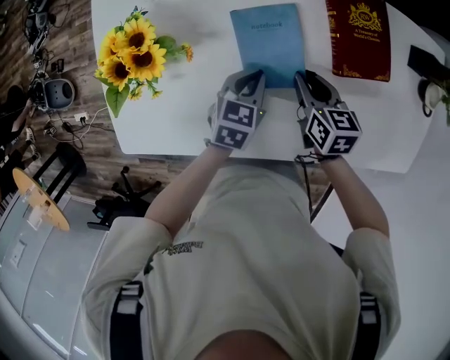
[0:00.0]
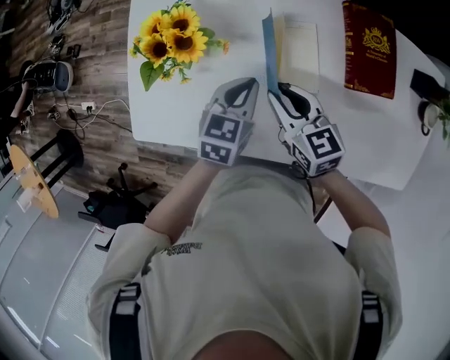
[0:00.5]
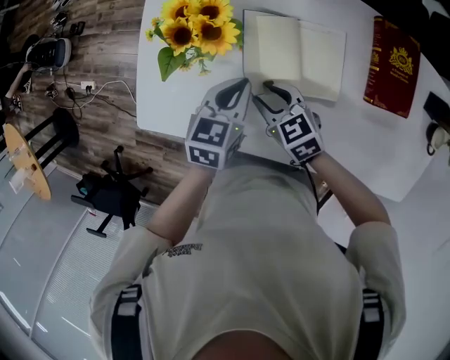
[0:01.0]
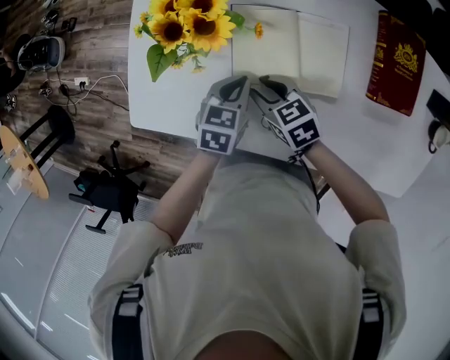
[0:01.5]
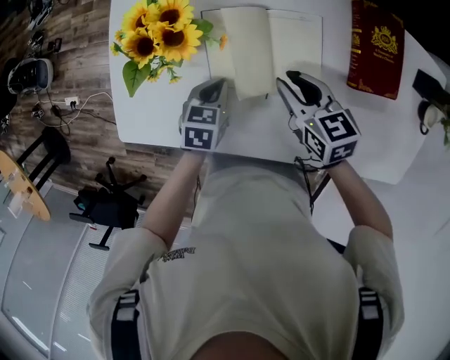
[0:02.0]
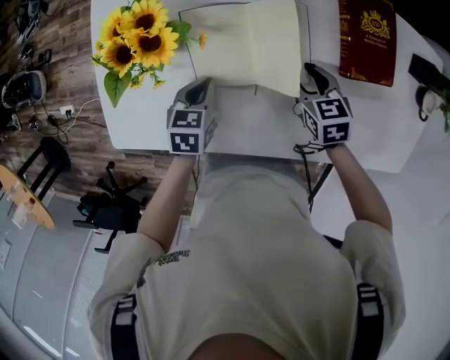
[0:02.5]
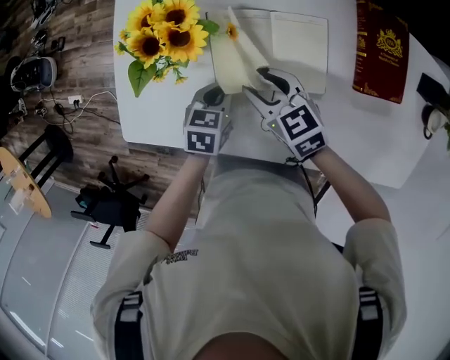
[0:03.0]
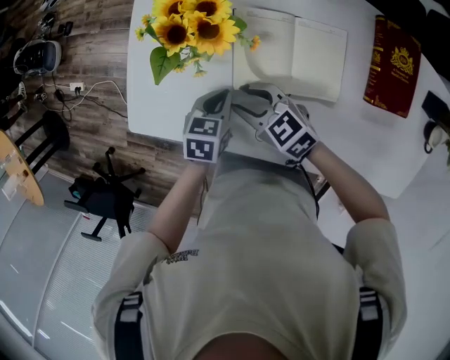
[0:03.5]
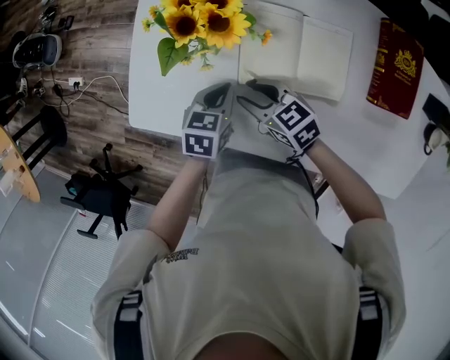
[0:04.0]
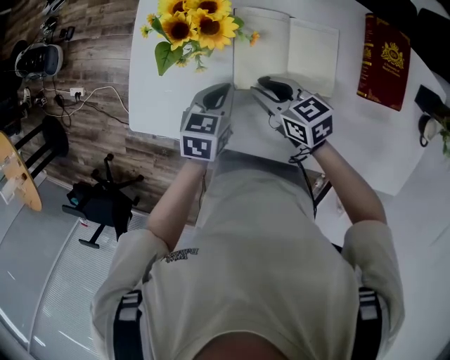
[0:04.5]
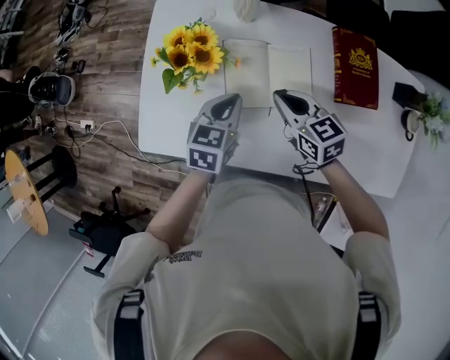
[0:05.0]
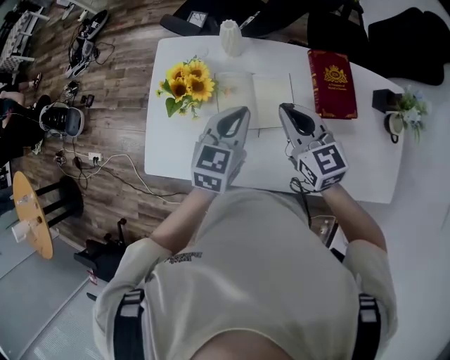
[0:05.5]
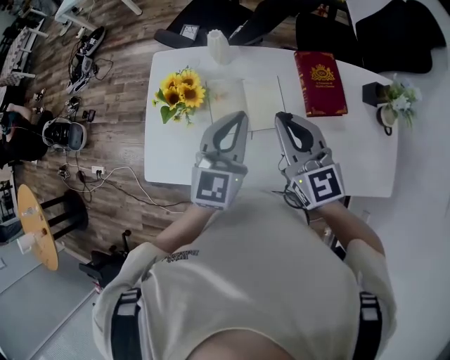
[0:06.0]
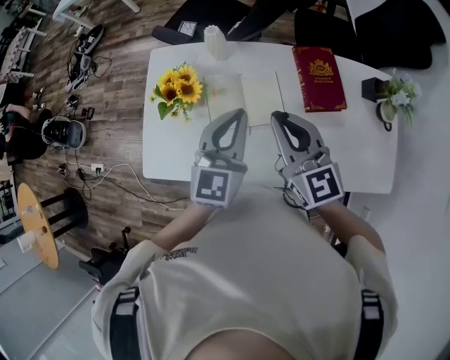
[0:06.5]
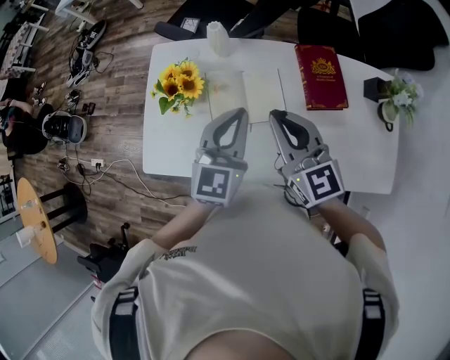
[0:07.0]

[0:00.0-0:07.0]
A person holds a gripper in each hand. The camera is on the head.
0:00.0 to 0:02.0: The left gripper moves some 10 cm upward and comes back, while the right gripper goes up and down, some 10 cm each way, reversing 2 times, and rotates some 20 degrees.
0:02.0 to 0:03.5: The left gripper moves approximately 5 cm. The right gripper shifts approximately 15 cm to the left, and changes its angle by some 30 degrees.
0:03.5 to 0:05.0: The right gripper is displaced to the right and upward by approximately 15 cm, turns by some 30 degrees, and closes up, while the left gripper travels upward and to the right by some 15 cm, and turns by some 20 degrees.
0:05.0 to 0:07.0: The left gripper heads upward and to the right, covering about 20 cm, and changes its angle by roughly 30 degrees, while the right gripper moves upward, roughly 20 cm, and swivels some 30 degrees.

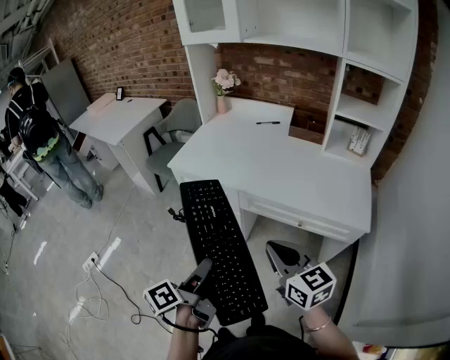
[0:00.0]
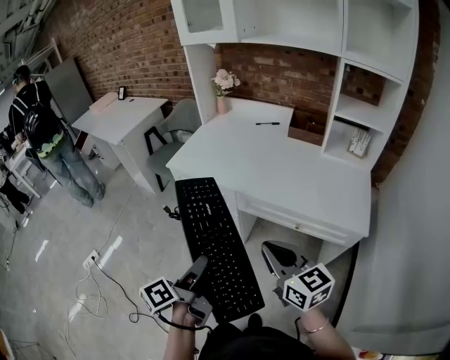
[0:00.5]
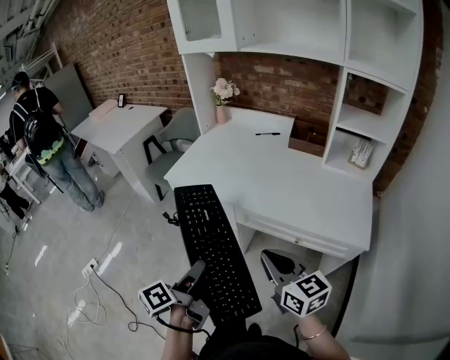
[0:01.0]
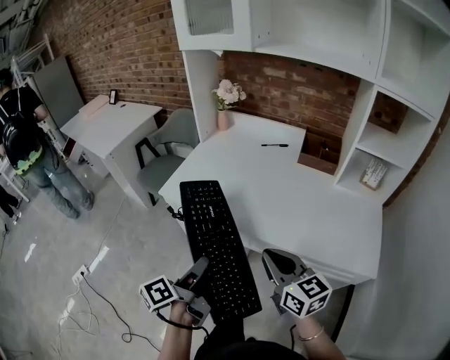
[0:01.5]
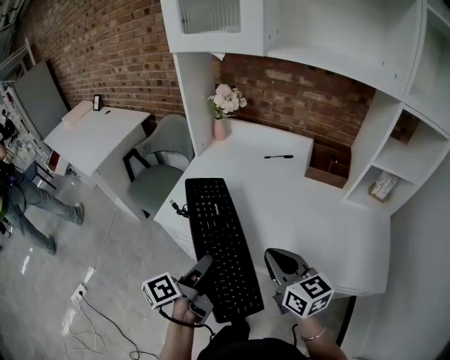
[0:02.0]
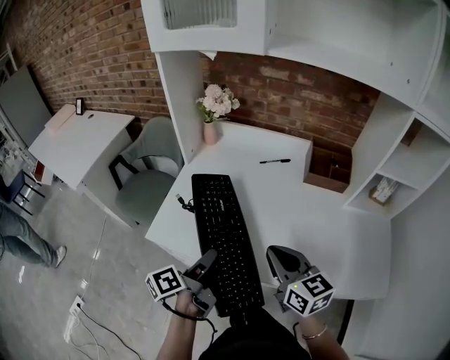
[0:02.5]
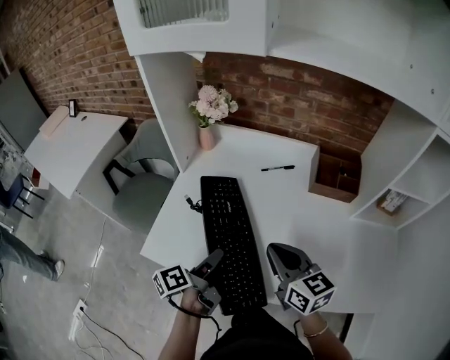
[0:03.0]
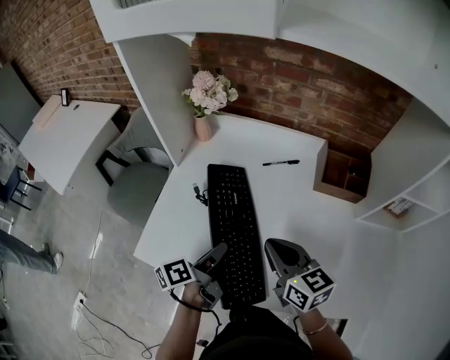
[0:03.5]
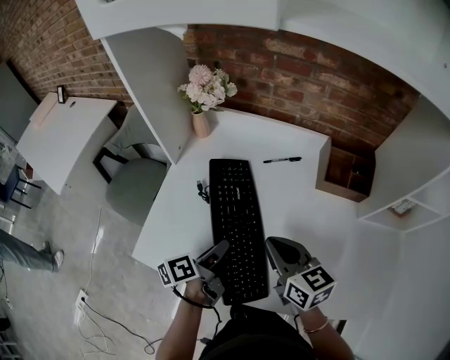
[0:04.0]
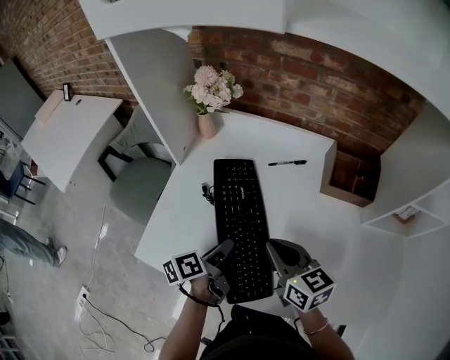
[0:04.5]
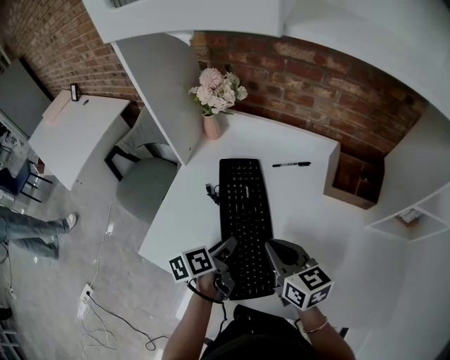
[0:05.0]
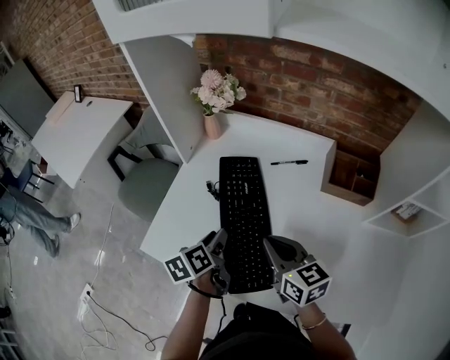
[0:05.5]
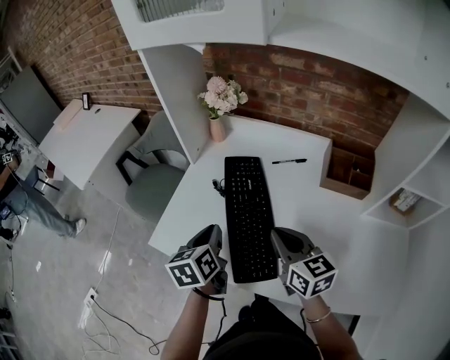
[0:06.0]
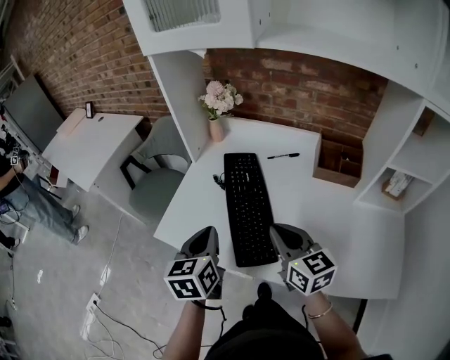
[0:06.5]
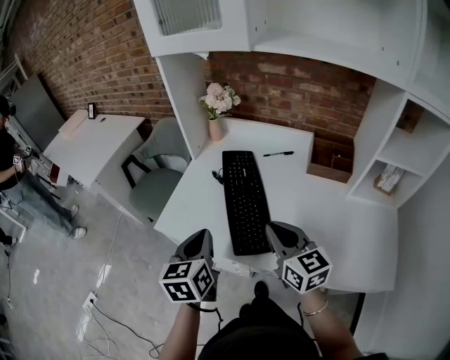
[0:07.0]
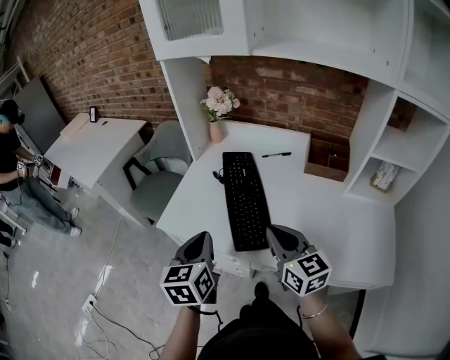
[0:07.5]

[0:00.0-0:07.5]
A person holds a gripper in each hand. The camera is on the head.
0:00.0 to 0:02.0: The grippers both shift forward by approximately 35 cm.
0:02.0 to 0:04.0: The left gripper heads forward and downward, covering about 25 cm. Meanwhile the right gripper heads forward, covering some 25 cm.
0:04.0 to 0:05.5: The left gripper swivels some 30 degrees.
0:05.5 to 0:07.5: Both grippers travel together backward and upward, roughly 20 cm. The left gripper turns by some 40 degrees, and closes its fingers.

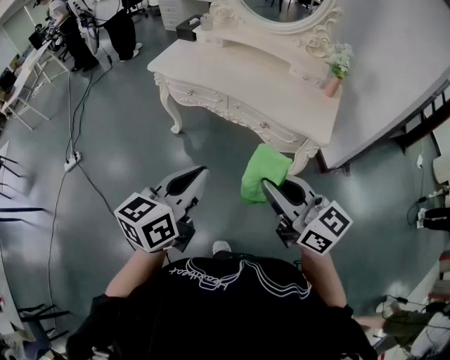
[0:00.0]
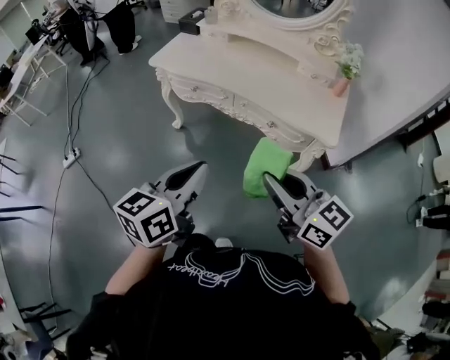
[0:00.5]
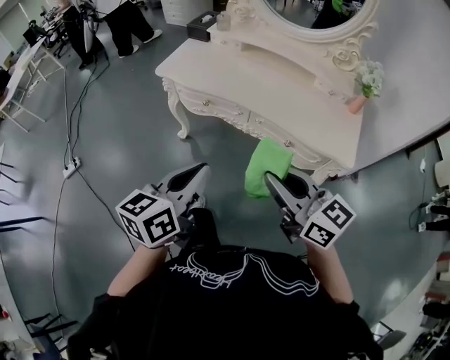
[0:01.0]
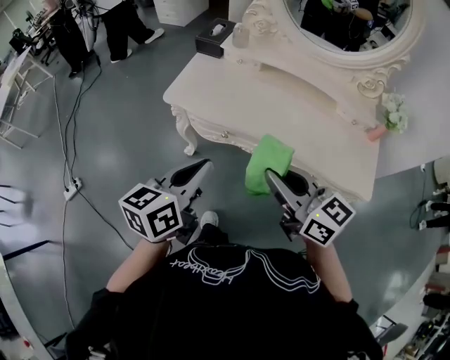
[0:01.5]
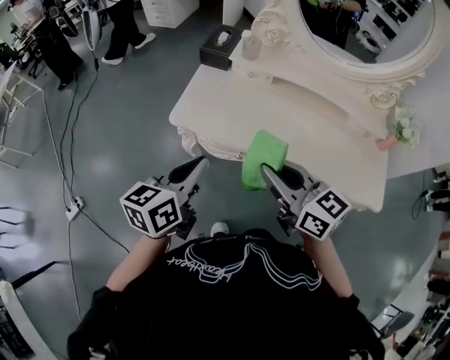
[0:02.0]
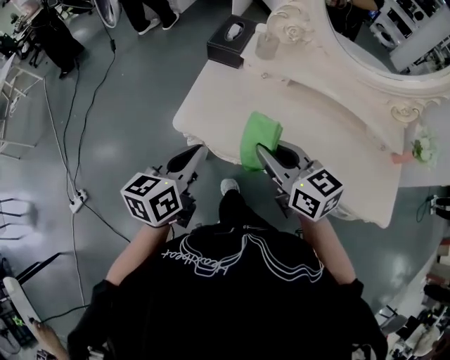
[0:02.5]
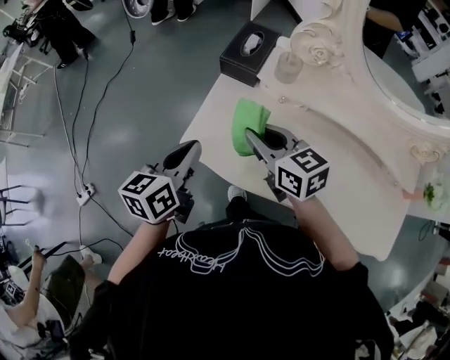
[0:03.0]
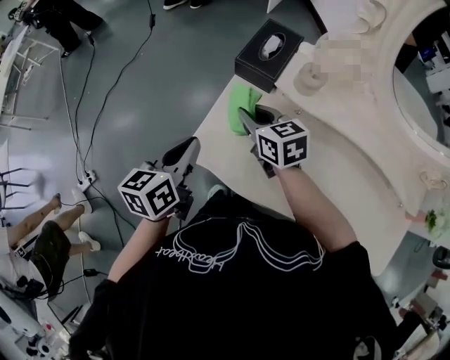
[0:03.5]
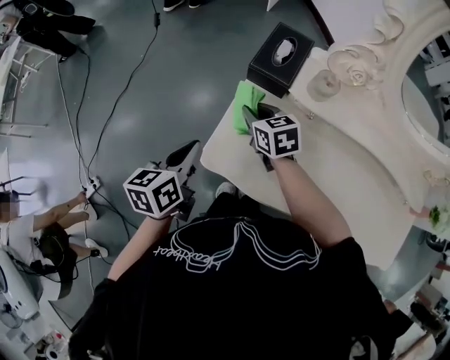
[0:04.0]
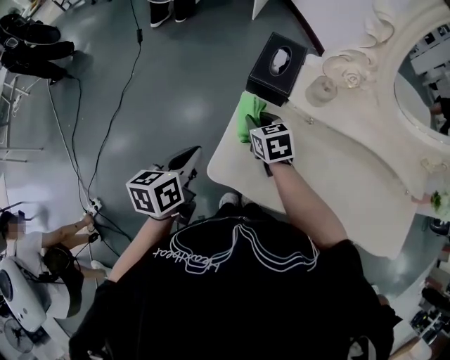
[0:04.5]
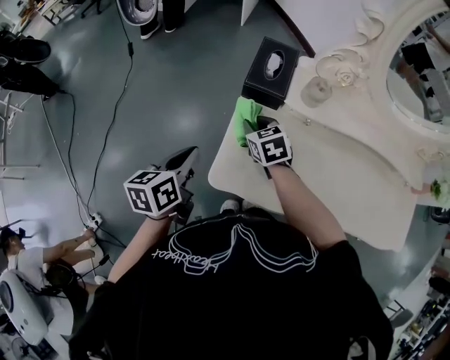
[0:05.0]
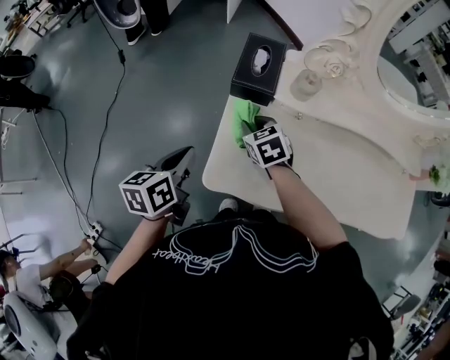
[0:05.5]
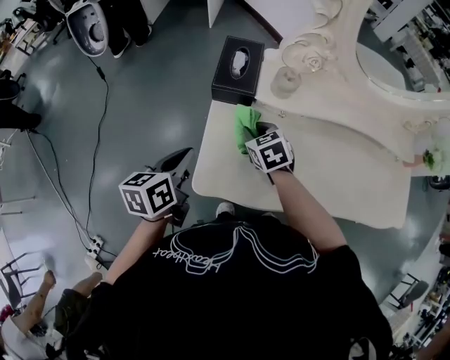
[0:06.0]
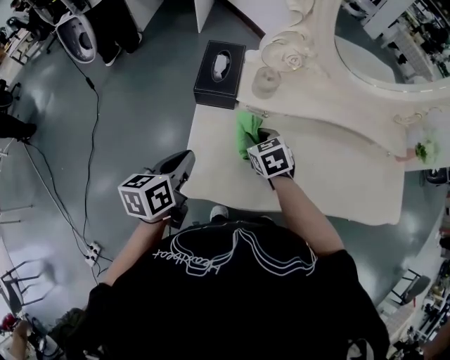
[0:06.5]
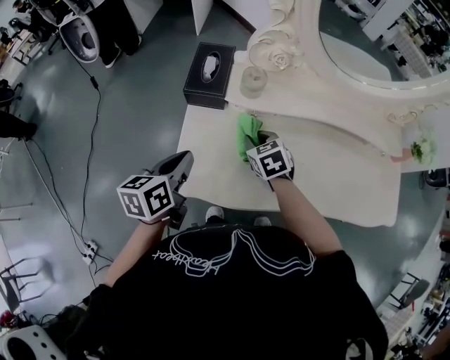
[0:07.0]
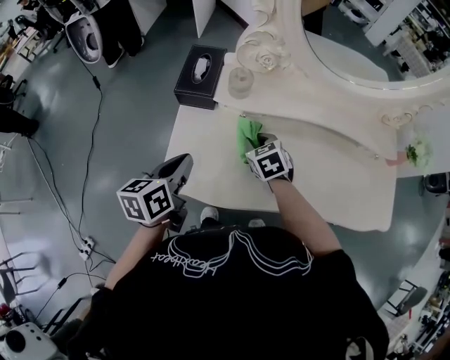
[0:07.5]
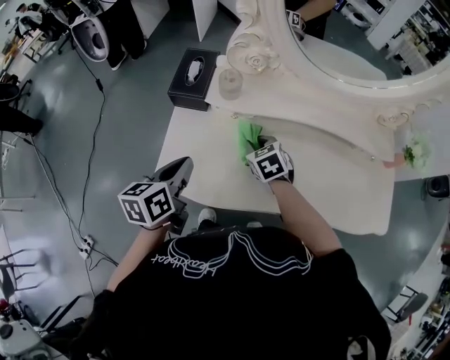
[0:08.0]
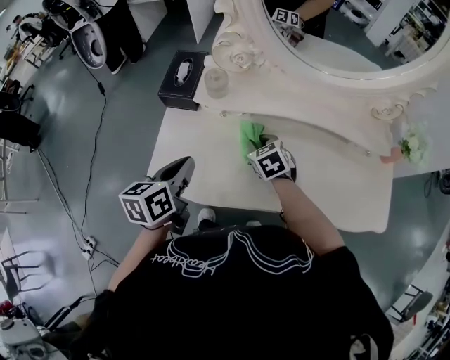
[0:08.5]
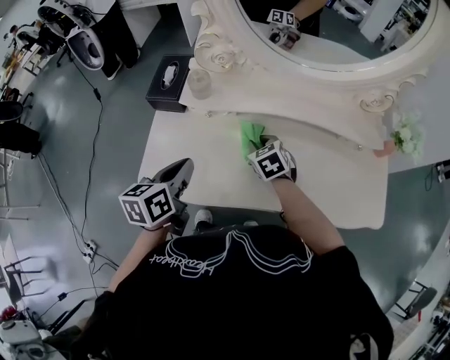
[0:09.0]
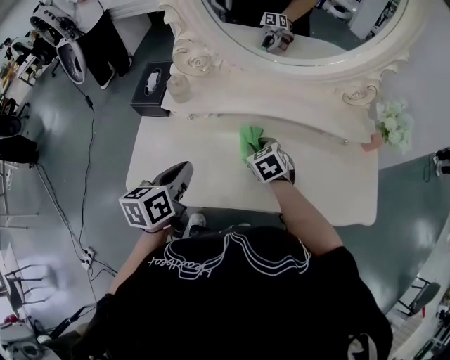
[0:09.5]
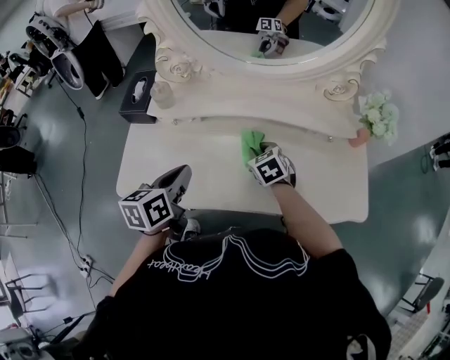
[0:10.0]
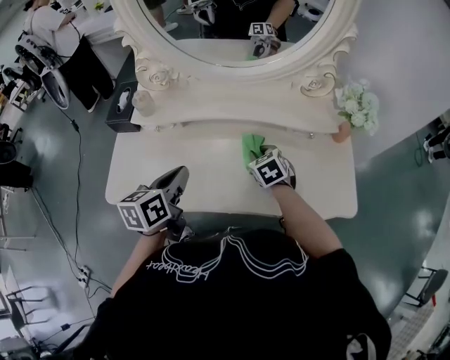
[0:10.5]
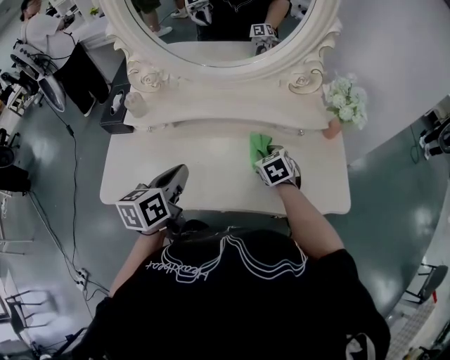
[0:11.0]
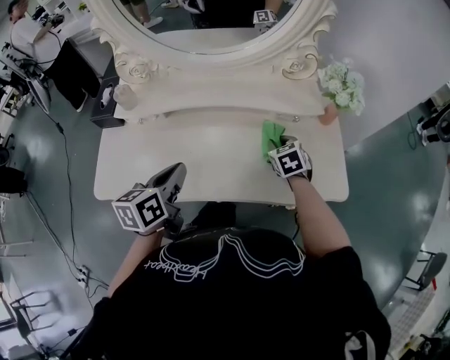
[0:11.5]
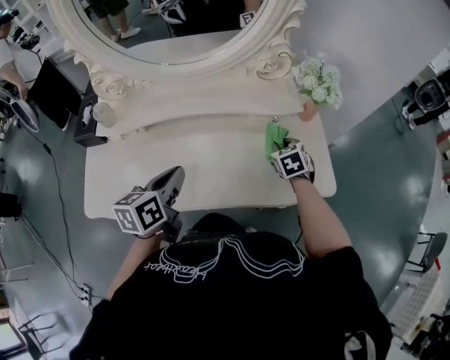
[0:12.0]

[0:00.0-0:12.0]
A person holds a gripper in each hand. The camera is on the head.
0:00.0 to 0:02.0: The pair of grippers is taken forward and to the left, some 50 cm.
0:02.0 to 0:04.0: The left gripper shifts some 30 cm forward, downward and to the left, and rotates approximately 20 degrees. Meanwhile the right gripper moves forward and downward, roughly 40 cm, and rotates roughly 30 degrees.
0:04.0 to 0:06.0: The left gripper is displaced forward by roughly 5 cm. Meanwhile the right gripper shifts approximately 10 cm to the right, and changes its angle by roughly 20 degrees.
0:06.0 to 0:08.0: The two grippers go approximately 15 cm to the right.
0:08.0 to 0:10.0: Both grippers travel together to the right, some 20 cm.
0:10.0 to 0:12.0: The right gripper goes about 25 cm to the right, and changes its angle by some 20 degrees, while the left gripper shifts about 15 cm to the right.
